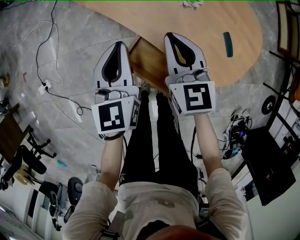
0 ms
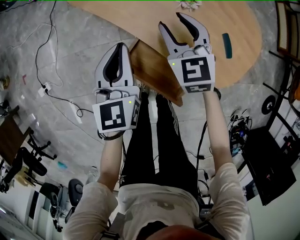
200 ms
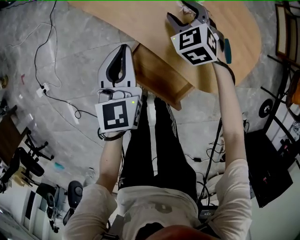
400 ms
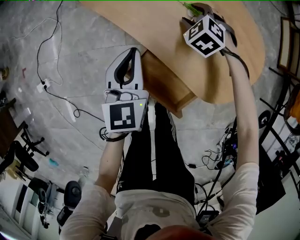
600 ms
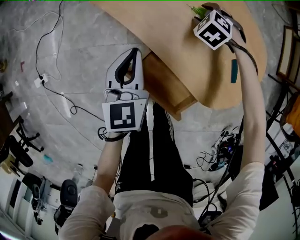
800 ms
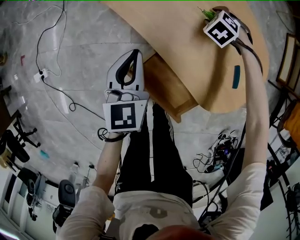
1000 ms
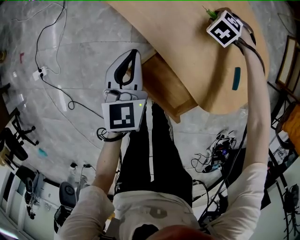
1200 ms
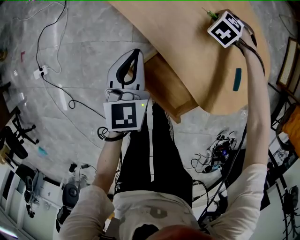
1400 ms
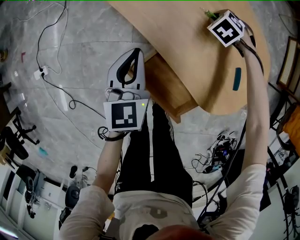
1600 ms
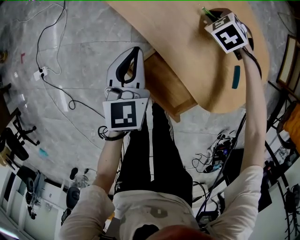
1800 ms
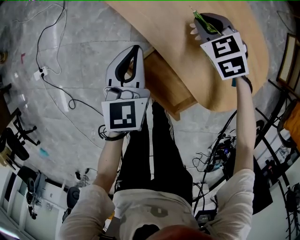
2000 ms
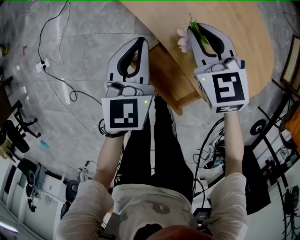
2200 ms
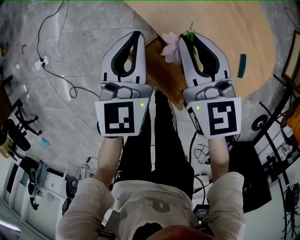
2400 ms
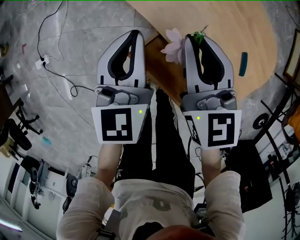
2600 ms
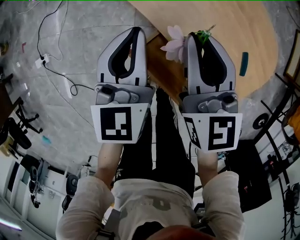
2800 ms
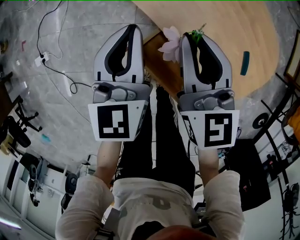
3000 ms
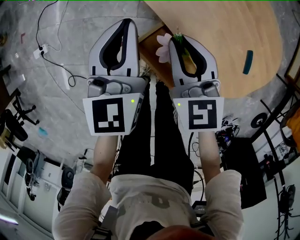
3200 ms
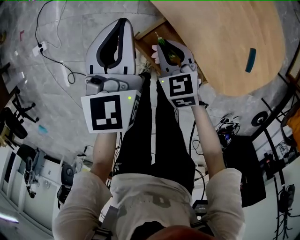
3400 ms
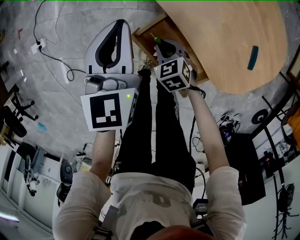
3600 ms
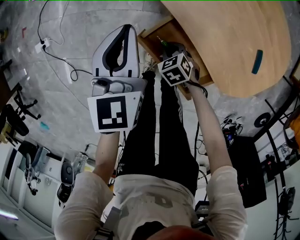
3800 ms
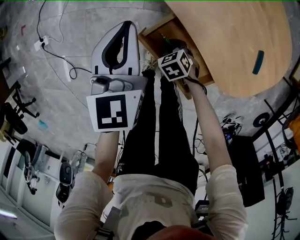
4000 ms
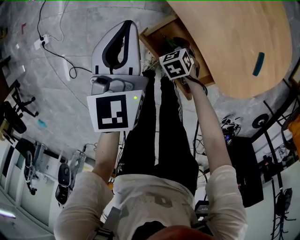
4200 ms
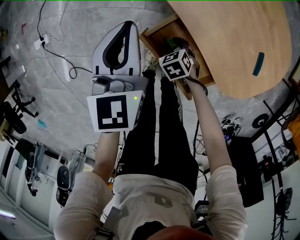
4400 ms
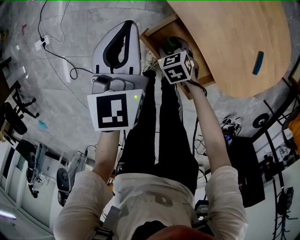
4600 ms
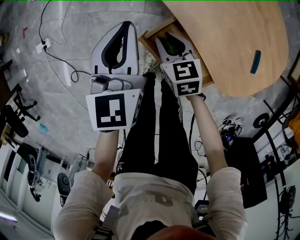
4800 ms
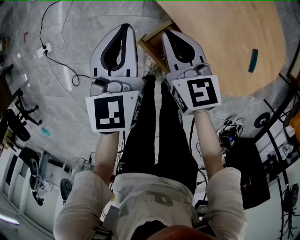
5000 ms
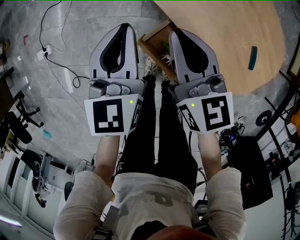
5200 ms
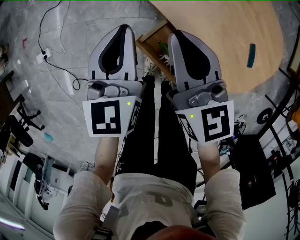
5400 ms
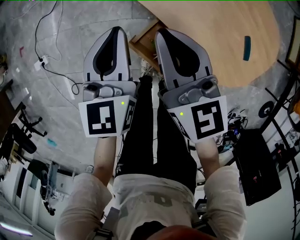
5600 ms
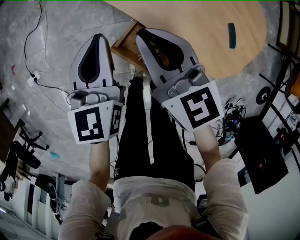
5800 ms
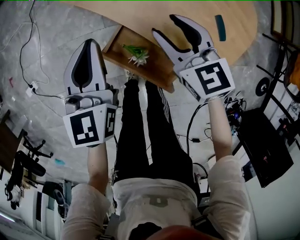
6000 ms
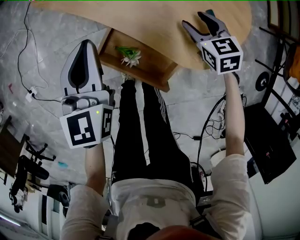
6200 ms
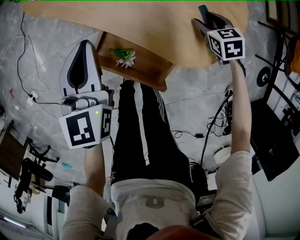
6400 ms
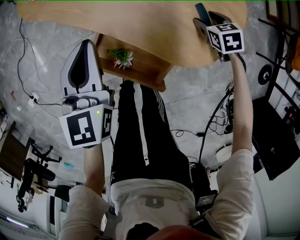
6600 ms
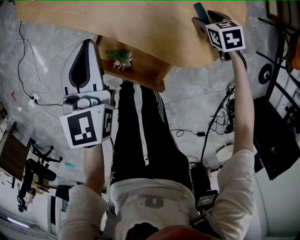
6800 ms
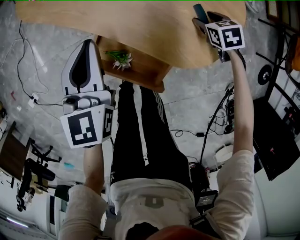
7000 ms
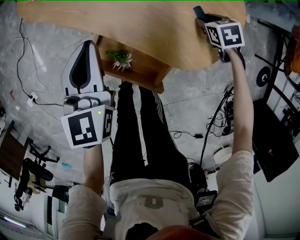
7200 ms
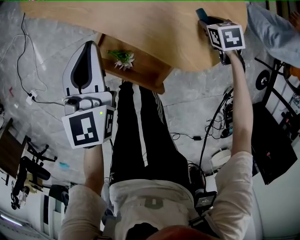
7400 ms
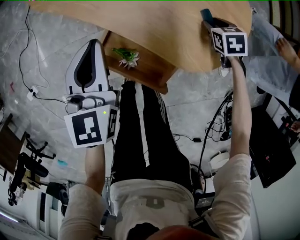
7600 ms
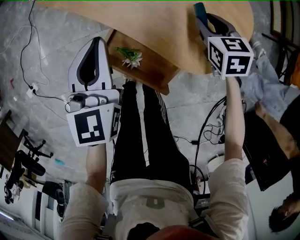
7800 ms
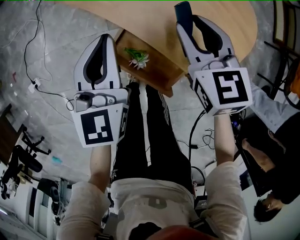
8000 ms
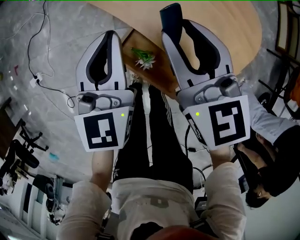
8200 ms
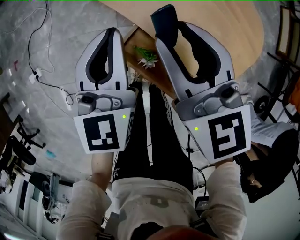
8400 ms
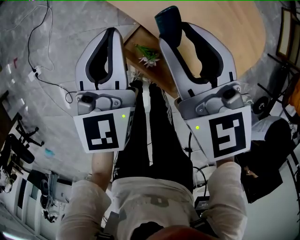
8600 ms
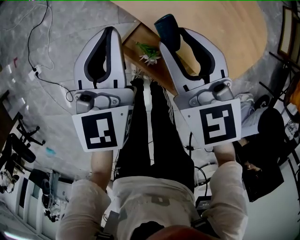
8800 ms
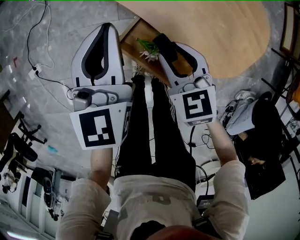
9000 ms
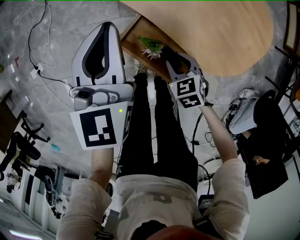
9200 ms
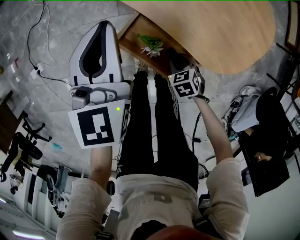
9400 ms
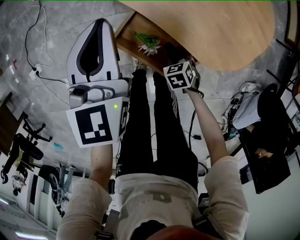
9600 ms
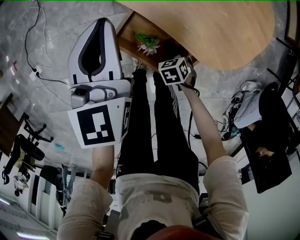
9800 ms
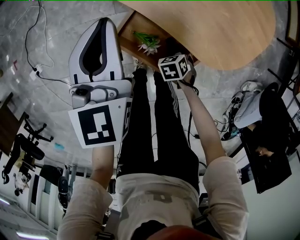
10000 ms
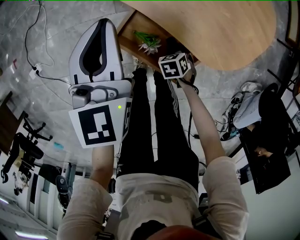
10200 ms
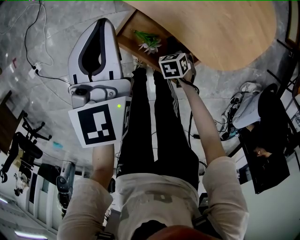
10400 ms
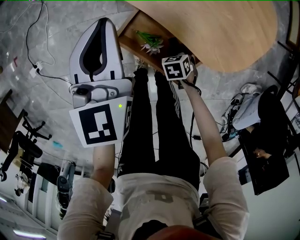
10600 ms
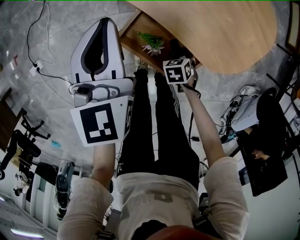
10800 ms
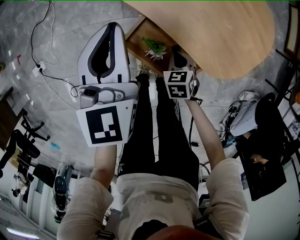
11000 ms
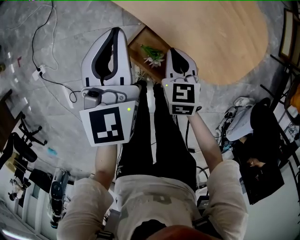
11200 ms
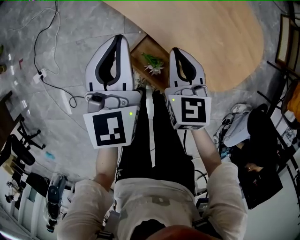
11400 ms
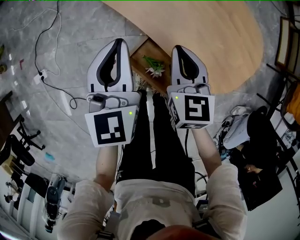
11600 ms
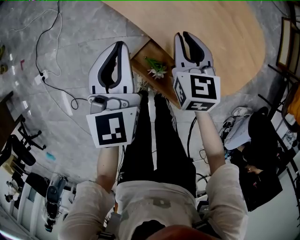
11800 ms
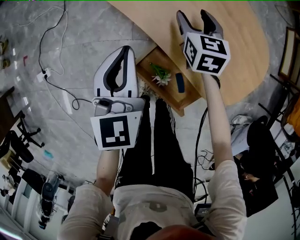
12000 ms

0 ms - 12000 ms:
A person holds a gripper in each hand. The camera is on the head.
0 ms - 1600 ms: The left gripper shifts some 5 cm downward. Meanwhile the right gripper ends up roughly 30 cm from where it was, tilts its fingers roughly 50 degrees downward, and opens, then closes again.
1600 ms - 3000 ms: The left gripper heads upward, covering about 5 cm. The right gripper moves upward, approximately 25 cm, and tips its fingers upward by roughly 60 degrees.
3000 ms - 4400 ms: The left gripper is displaced to the left by some 5 cm. The right gripper travels downward by some 35 cm, points its fingers approximately 50 degrees further downward, and opens its fingers.
4400 ms - 6000 ms: The left gripper heads to the right, covering roughly 5 cm. The right gripper travels upward and to the right by about 30 cm, tilts its fingers roughly 40 degrees upward, and closes, then reopens.
6000 ms - 7600 ms: The right gripper ends up roughly 30 cm from where it was, and angles its fingers downward, by approximately 40 degrees. The left gripper shifts by about 5 cm.
7600 ms - 9000 ms: The left gripper heads to the left, covering approximately 5 cm. The right gripper travels to the left and upward by approximately 30 cm, and changes its angle by about 30 degrees.
9000 ms - 10400 ms: The right gripper is displaced downward by about 25 cm, and angles its fingers downward, by roughly 40 degrees.
10400 ms - 12000 ms: The right gripper moves roughly 40 cm, tilts its fingers roughly 50 degrees upward, and opens up. The left gripper shifts by approximately 5 cm.

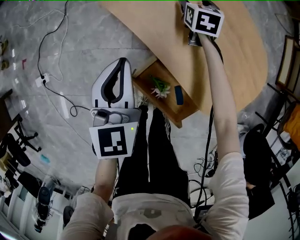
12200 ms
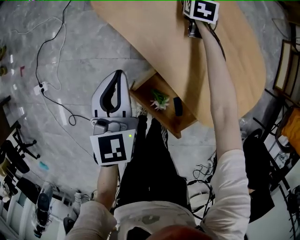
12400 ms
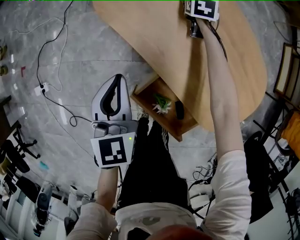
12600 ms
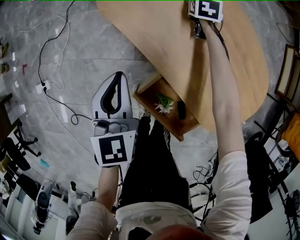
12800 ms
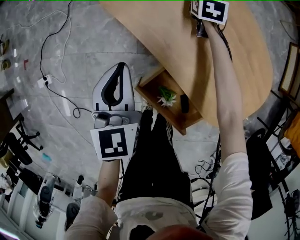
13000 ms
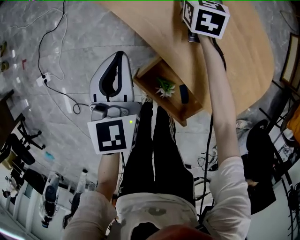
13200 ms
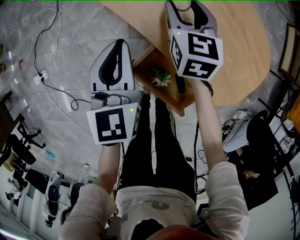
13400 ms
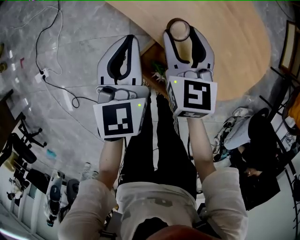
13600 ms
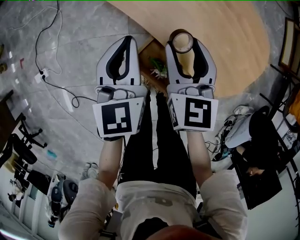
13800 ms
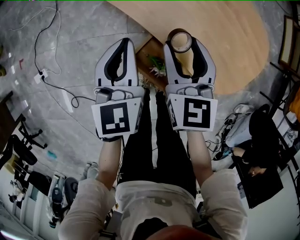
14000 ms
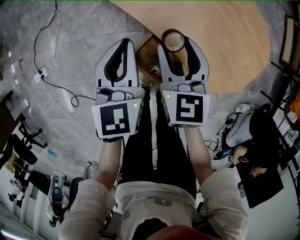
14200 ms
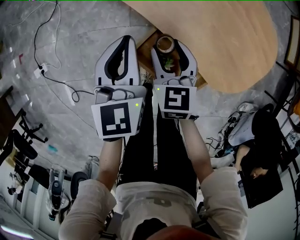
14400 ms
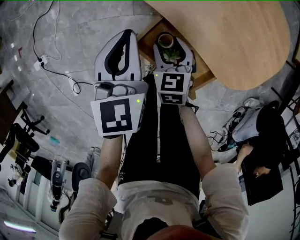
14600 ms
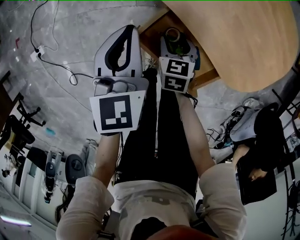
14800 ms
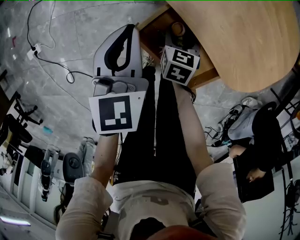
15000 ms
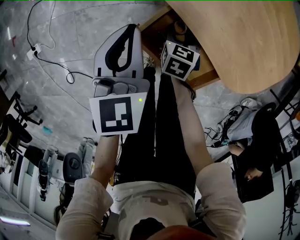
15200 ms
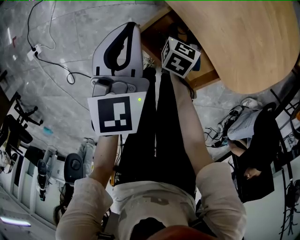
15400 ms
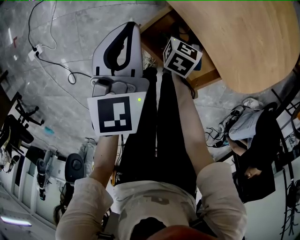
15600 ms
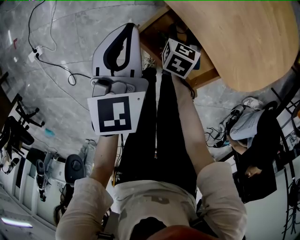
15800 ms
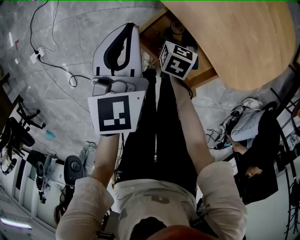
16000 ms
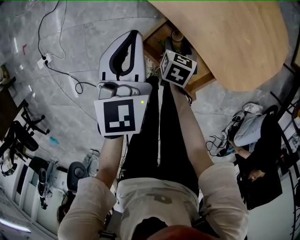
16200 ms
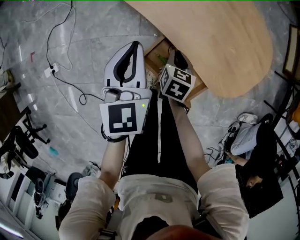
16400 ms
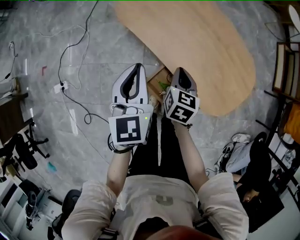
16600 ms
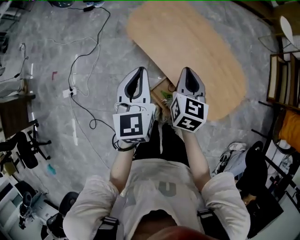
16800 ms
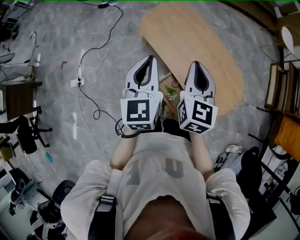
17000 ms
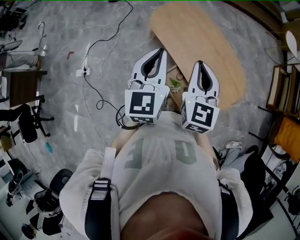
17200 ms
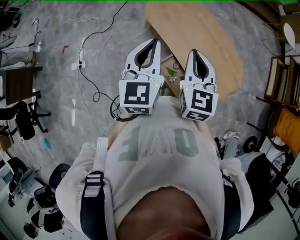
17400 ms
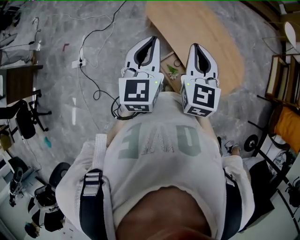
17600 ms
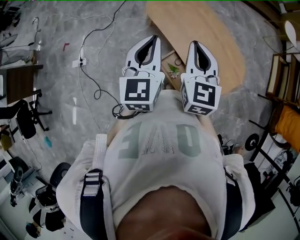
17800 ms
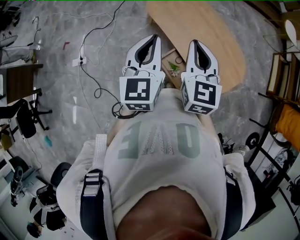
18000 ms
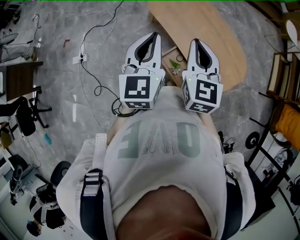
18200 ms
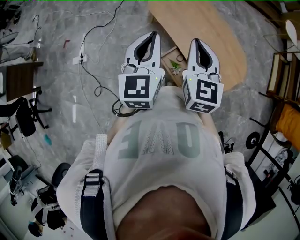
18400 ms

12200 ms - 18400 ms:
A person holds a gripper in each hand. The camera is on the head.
12200 ms - 13800 ms: The right gripper shifts some 30 cm backward and upward.
13800 ms - 15400 ms: The left gripper moves downward, some 10 cm. The right gripper moves downward, about 30 cm, and rotates approximately 30 degrees.
15400 ms - 16800 ms: The grippers both shift upward by some 40 cm. The right gripper tilts its fingers approximately 30 degrees upward, and closes its fingers.
16800 ms - 18400 ms: The grippers both shift upward and backward by some 20 cm. The right gripper rotates some 20 degrees.

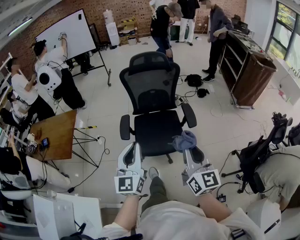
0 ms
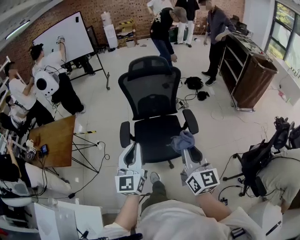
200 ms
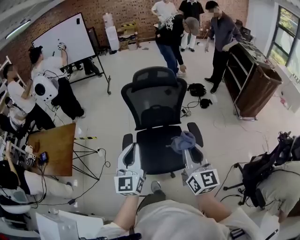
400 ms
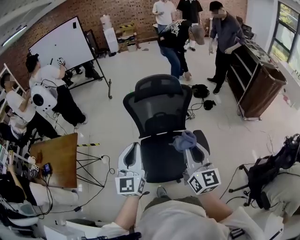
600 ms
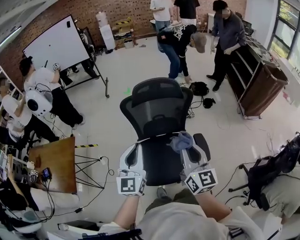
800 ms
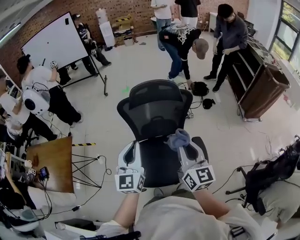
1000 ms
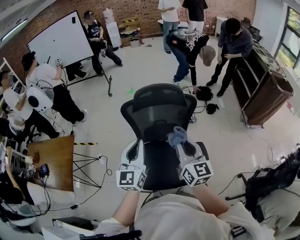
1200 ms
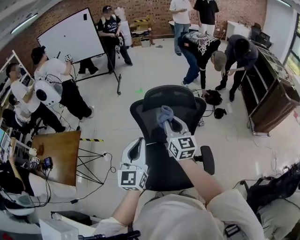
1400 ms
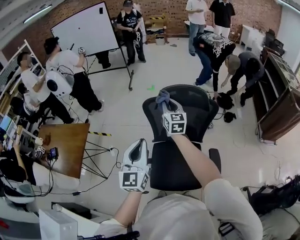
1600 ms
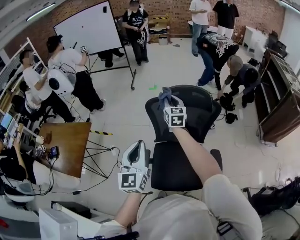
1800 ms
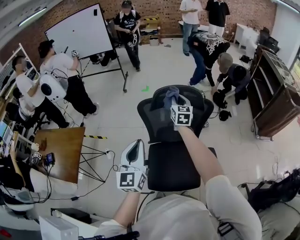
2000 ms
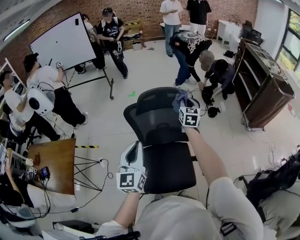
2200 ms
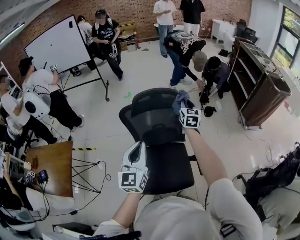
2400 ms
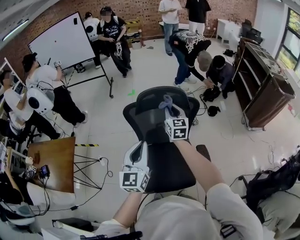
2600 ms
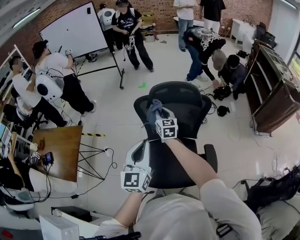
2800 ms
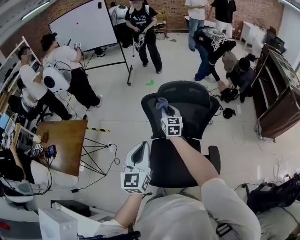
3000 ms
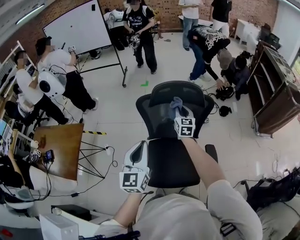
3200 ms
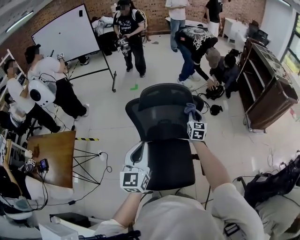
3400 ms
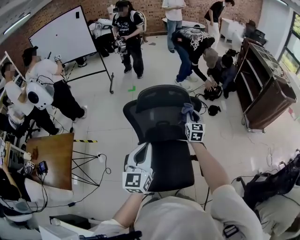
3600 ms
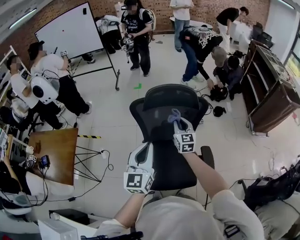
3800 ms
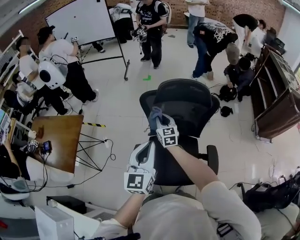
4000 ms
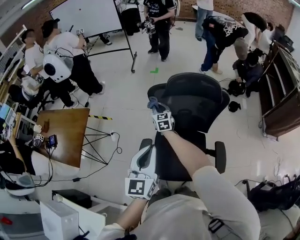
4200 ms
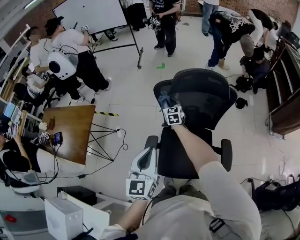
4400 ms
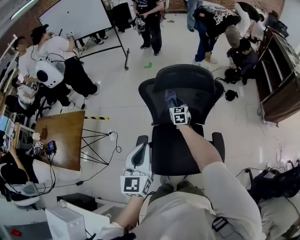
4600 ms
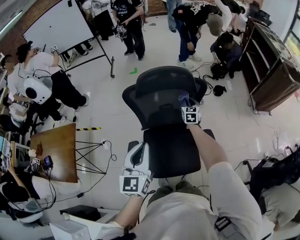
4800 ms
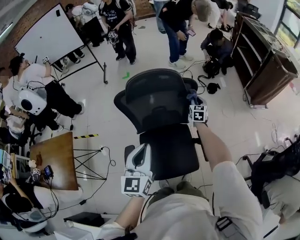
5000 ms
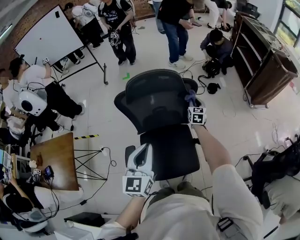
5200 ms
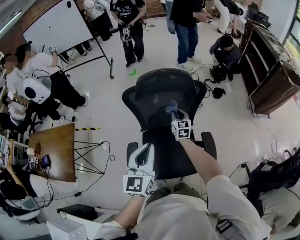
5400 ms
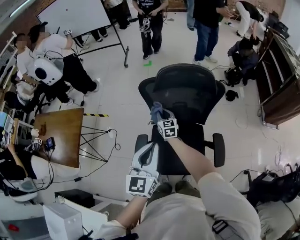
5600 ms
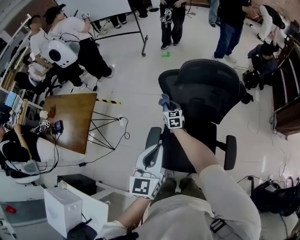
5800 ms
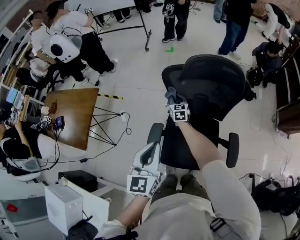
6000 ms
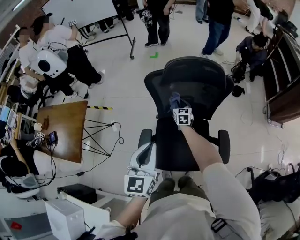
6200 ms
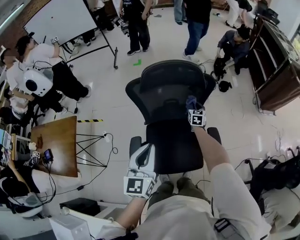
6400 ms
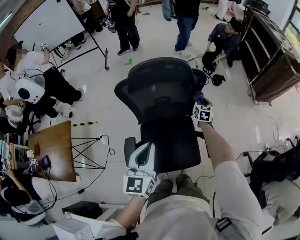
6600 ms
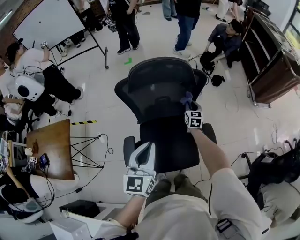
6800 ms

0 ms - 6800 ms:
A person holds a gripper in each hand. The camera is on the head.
0 ms - 1400 ms: Both grippers are carried forward, roughly 50 cm.
1400 ms - 2800 ms: The right gripper swings left and right, some 20 cm each way, with 2 reversals.
2800 ms - 4000 ms: The right gripper goes approximately 5 cm downward, and reaches some 20 cm to the right, then returns.
4000 ms - 5400 ms: The left gripper goes approximately 5 cm to the right. The right gripper moves left and right over about 40 cm, changing direction 2 times.
5400 ms - 6800 ms: The left gripper shifts roughly 5 cm forward, and travels to the left and back again, some 10 cm each way; the right gripper moves left and right over roughly 40 cm, changing direction 2 times.
